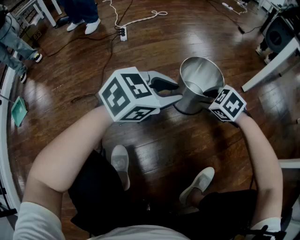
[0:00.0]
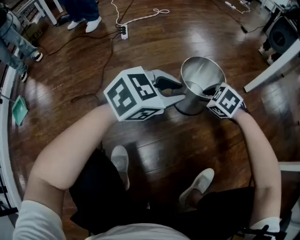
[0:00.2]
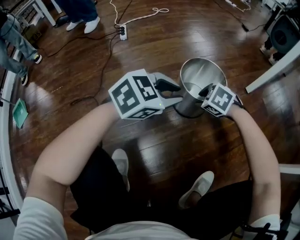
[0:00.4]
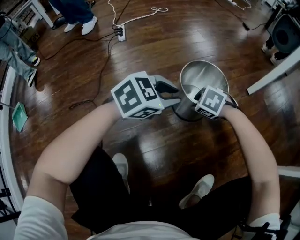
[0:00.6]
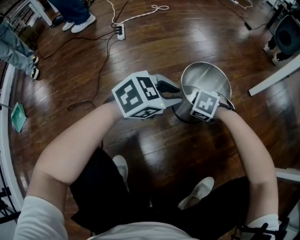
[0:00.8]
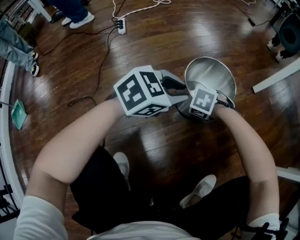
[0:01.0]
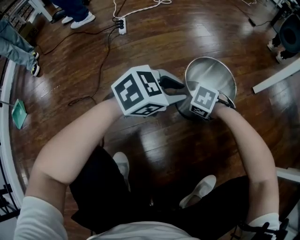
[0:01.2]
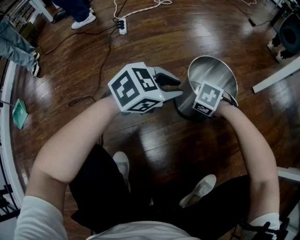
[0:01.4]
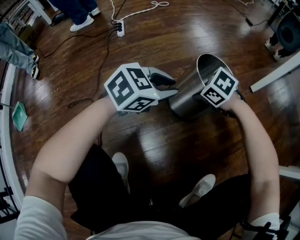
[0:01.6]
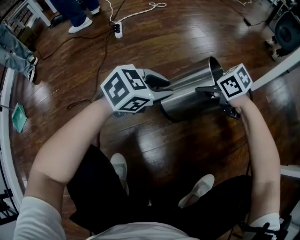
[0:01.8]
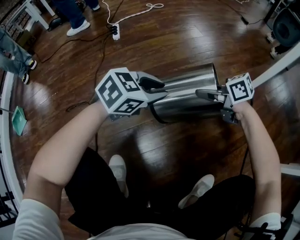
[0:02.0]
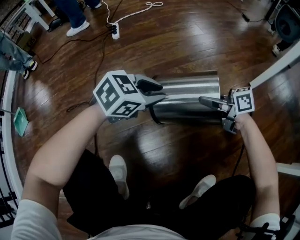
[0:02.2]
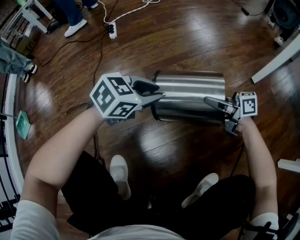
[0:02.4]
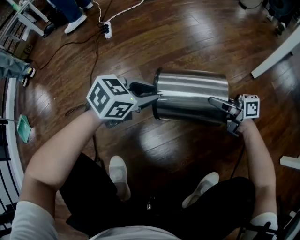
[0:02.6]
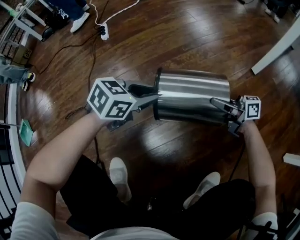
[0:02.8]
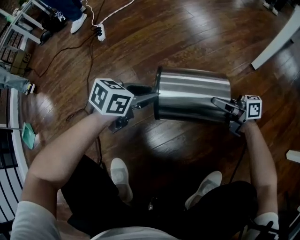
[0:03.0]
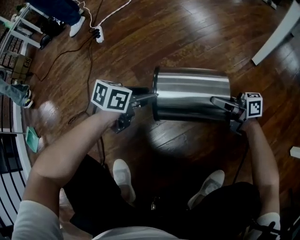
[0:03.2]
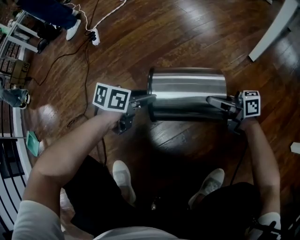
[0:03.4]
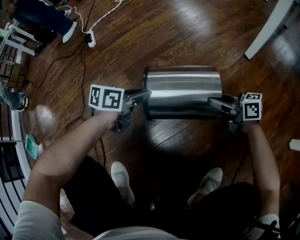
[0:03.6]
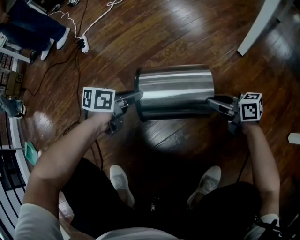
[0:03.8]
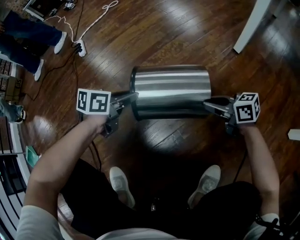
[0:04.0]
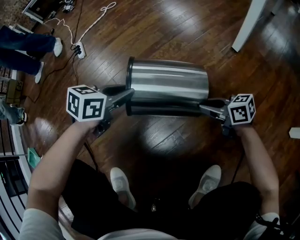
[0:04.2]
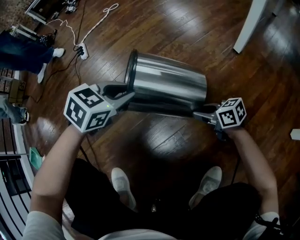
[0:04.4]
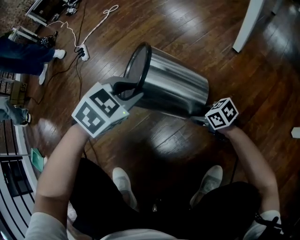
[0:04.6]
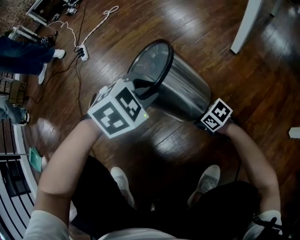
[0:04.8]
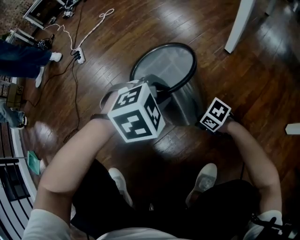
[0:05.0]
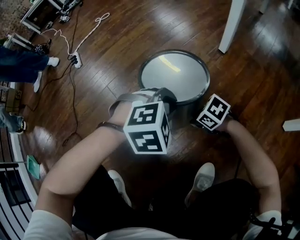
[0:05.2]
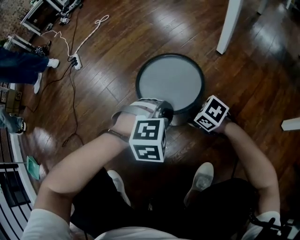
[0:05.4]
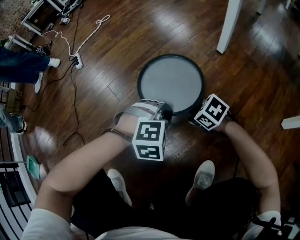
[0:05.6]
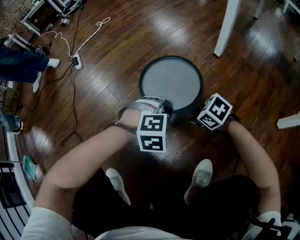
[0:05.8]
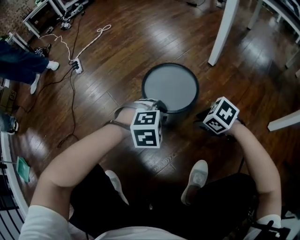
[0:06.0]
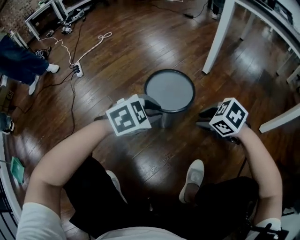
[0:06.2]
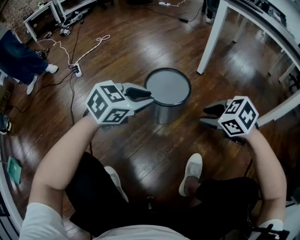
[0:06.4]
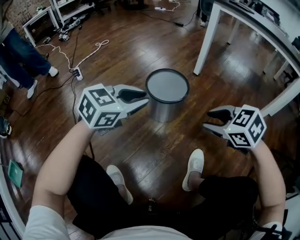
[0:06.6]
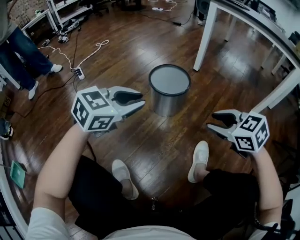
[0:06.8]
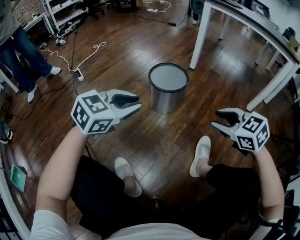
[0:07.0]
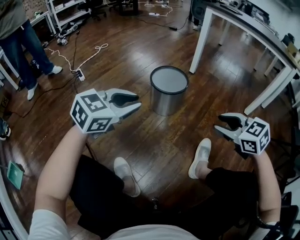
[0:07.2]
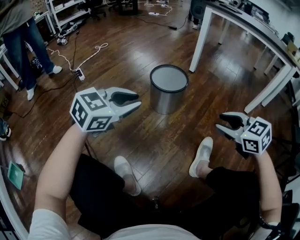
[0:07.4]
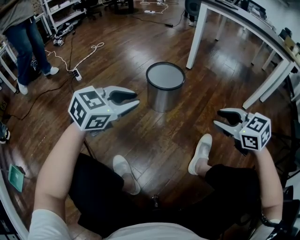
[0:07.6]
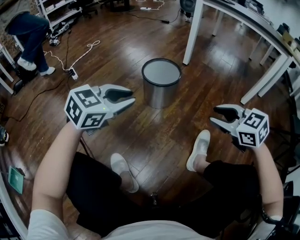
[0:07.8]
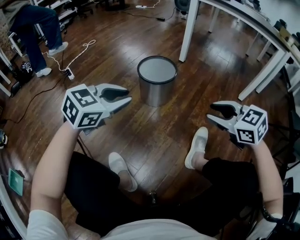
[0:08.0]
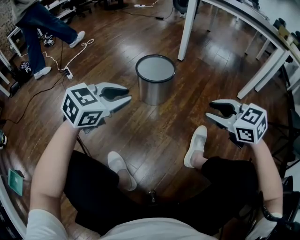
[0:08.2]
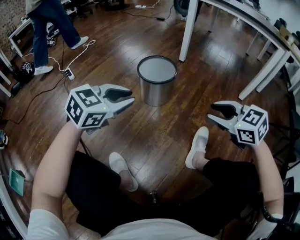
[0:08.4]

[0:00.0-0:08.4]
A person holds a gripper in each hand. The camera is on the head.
0:00.0 to 0:01.4: The left gripper moves approximately 10 cm; the right gripper is displaced downward by about 10 cm, changes its angle by approximately 20 degrees, and closes its fingers.
0:01.4 to 0:02.8: The left gripper is displaced downward by roughly 10 cm. Meanwhile the right gripper changes place by some 15 cm, and tilts its fingers about 80 degrees upward.
0:02.8 to 0:04.2: The right gripper ends up approximately 10 cm from where it was, and swivels some 30 degrees. The left gripper opens, then closes again.
0:04.2 to 0:05.6: The left gripper shifts by approximately 20 cm, and twists about 70 degrees clockwise, seen from behind, while the right gripper travels downward and back again, approximately 10 cm each way, and tilts its fingers approximately 40 degrees downward.
0:05.6 to 0:07.0: Both grippers travel together upward, approximately 25 cm. The right gripper rotates about 40 degrees; the left gripper points its fingers roughly 30 degrees further upward.
0:07.0 to 0:08.4: The grippers stay close to where they were, moving slightly.

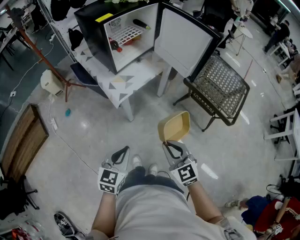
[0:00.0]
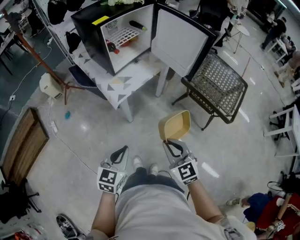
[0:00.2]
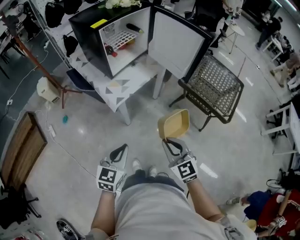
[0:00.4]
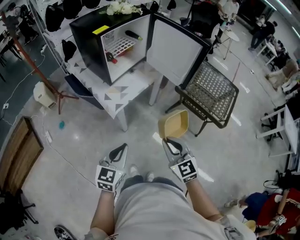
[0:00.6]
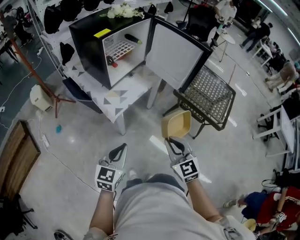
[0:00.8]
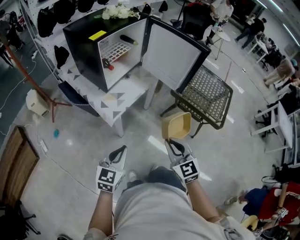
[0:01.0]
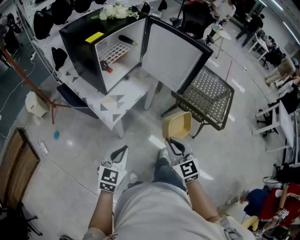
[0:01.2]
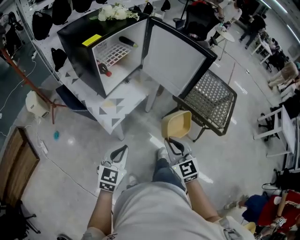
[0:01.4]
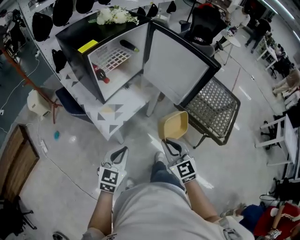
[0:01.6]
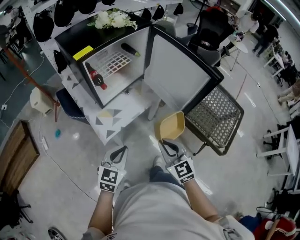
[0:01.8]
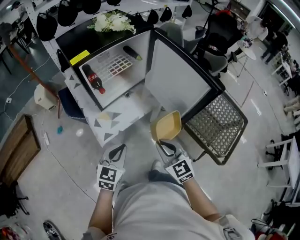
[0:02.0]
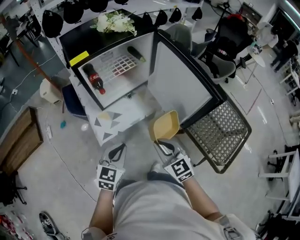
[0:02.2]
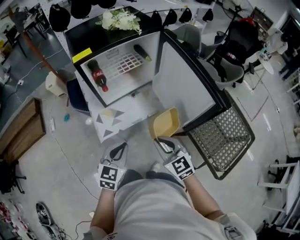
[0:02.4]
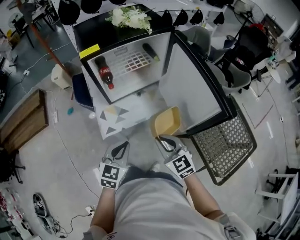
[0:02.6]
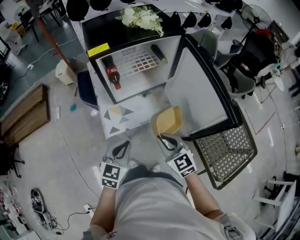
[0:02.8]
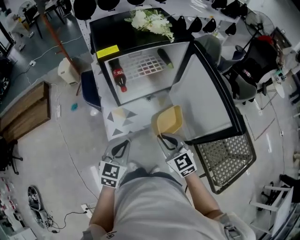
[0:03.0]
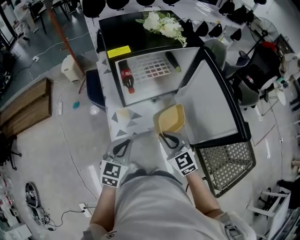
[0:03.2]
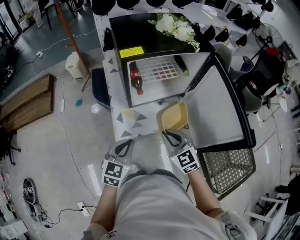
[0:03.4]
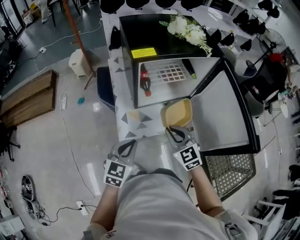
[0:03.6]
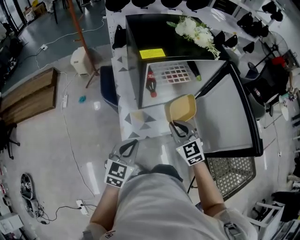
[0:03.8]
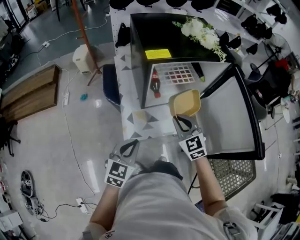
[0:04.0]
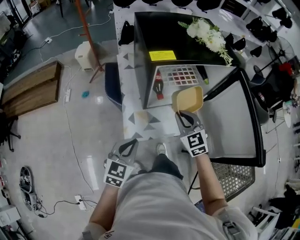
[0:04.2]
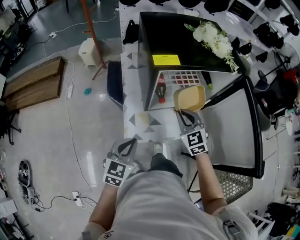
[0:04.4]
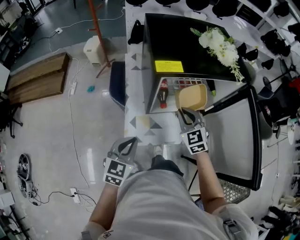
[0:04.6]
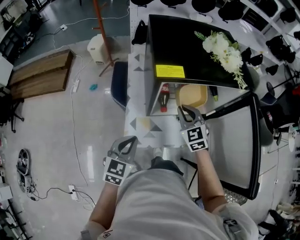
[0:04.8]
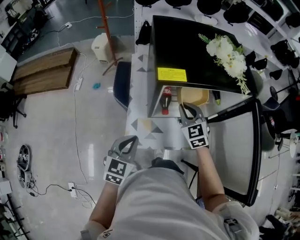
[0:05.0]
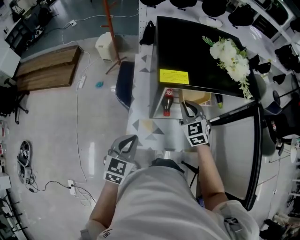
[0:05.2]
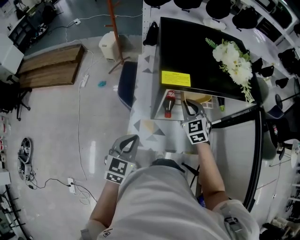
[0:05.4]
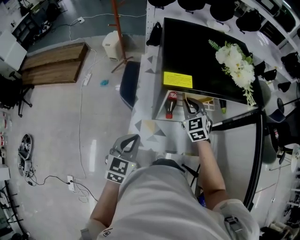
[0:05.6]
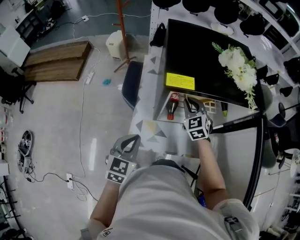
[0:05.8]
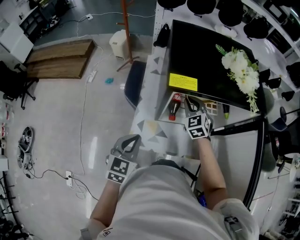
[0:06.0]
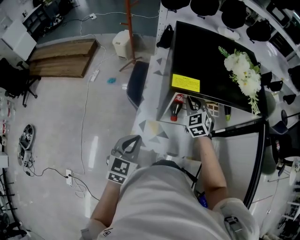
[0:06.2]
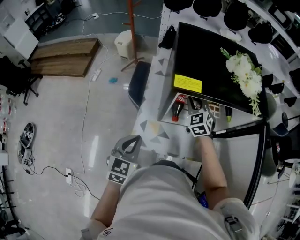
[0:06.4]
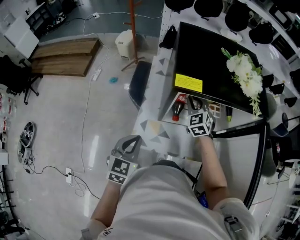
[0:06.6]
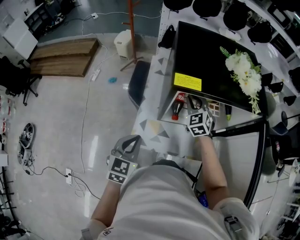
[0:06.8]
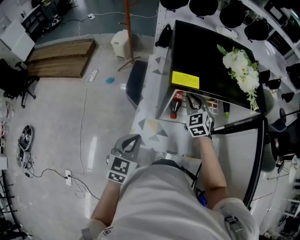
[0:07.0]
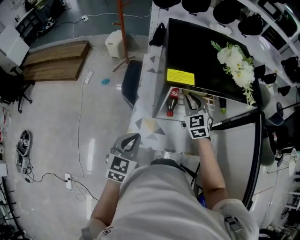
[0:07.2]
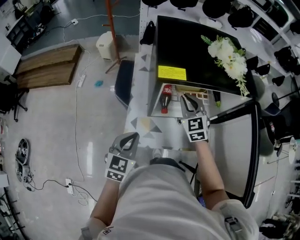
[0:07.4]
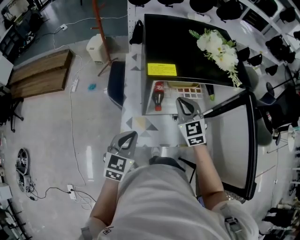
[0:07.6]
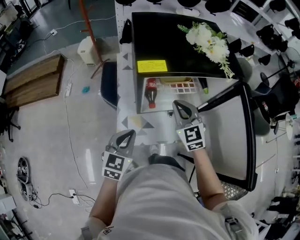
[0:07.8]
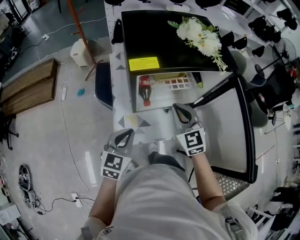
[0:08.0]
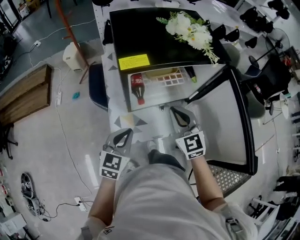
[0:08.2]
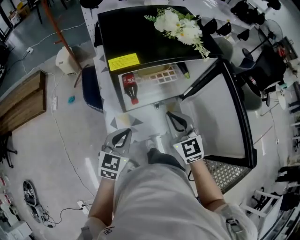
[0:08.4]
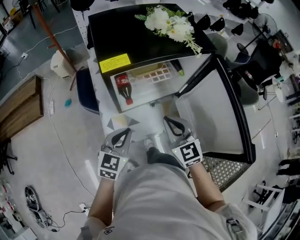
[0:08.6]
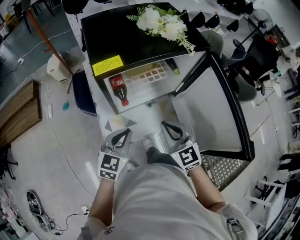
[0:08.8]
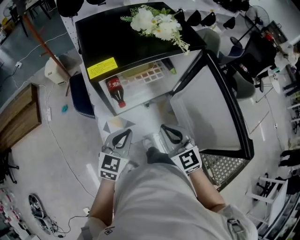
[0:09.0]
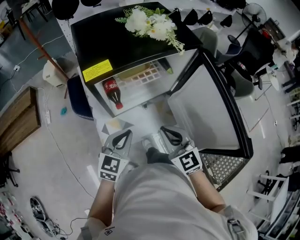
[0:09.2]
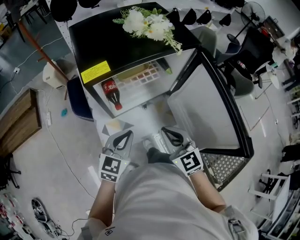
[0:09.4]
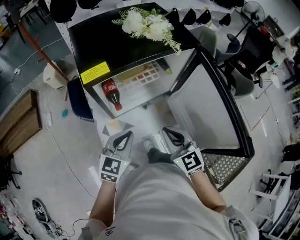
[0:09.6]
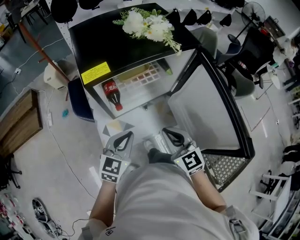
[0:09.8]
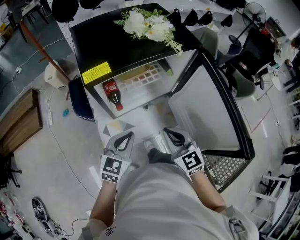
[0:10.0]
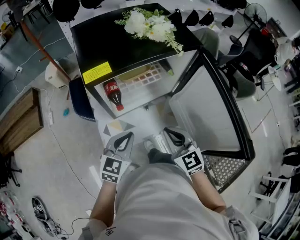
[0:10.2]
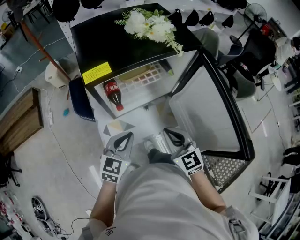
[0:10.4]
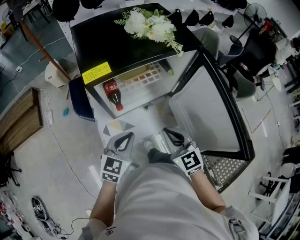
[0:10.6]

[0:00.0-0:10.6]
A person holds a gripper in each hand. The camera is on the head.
0:00.0 to 0:01.6: The two grippers go roughly 20 cm forward.
0:01.6 to 0:03.0: The right gripper moves roughly 15 cm, and rotates about 30 degrees, while the left gripper shifts by roughly 15 cm, and turns by about 30 degrees.
0:03.0 to 0:04.6: The left gripper moves forward and to the left, roughly 15 cm, while the right gripper moves forward, approximately 25 cm.
0:04.6 to 0:06.0: The right gripper shifts some 15 cm forward.
0:06.0 to 0:07.6: The right gripper moves backward and upward, approximately 10 cm.
0:07.6 to 0:09.0: The right gripper shifts some 20 cm backward and to the right, while the left gripper is displaced to the right by about 10 cm, and turns by some 20 degrees.
0:09.0 to 0:10.6: The grippers stay close to where they were, moving slightly.

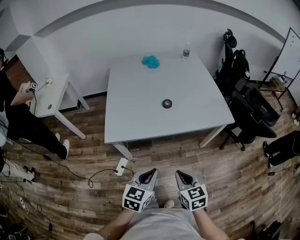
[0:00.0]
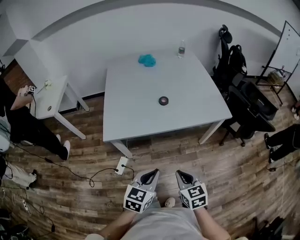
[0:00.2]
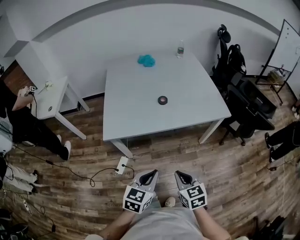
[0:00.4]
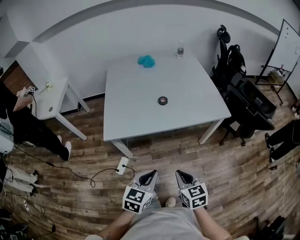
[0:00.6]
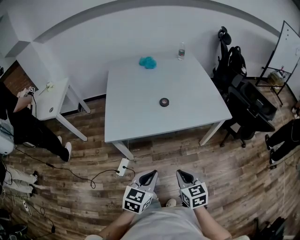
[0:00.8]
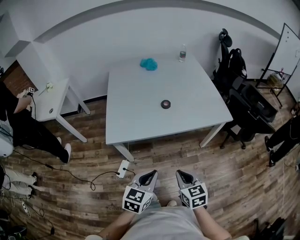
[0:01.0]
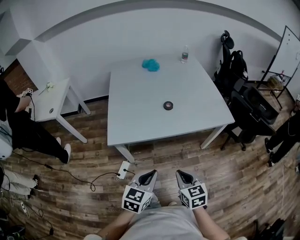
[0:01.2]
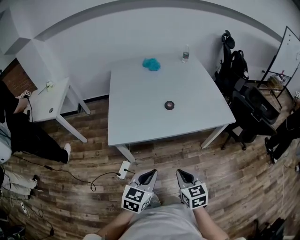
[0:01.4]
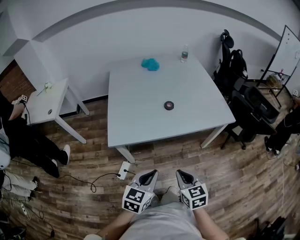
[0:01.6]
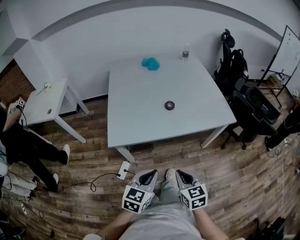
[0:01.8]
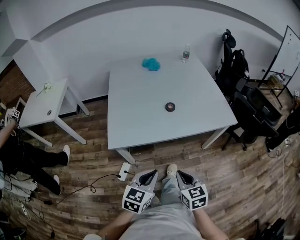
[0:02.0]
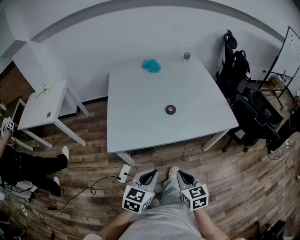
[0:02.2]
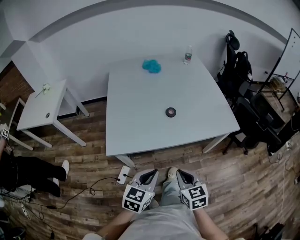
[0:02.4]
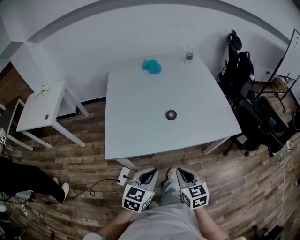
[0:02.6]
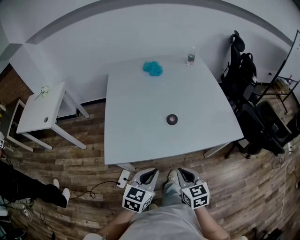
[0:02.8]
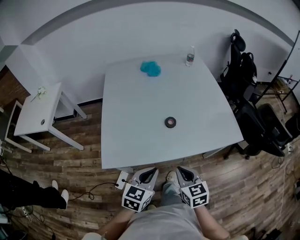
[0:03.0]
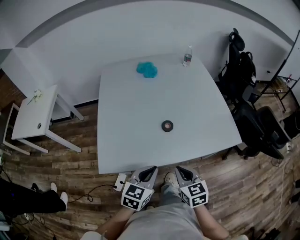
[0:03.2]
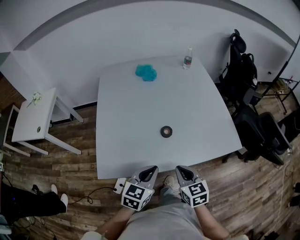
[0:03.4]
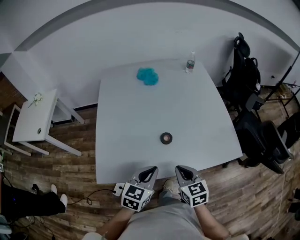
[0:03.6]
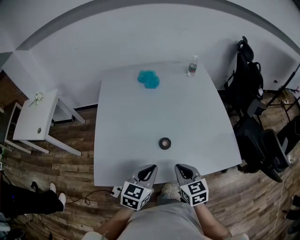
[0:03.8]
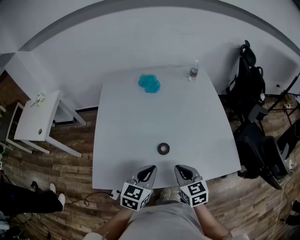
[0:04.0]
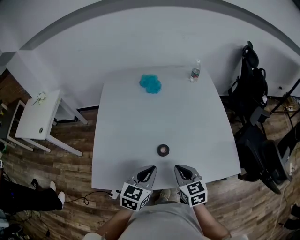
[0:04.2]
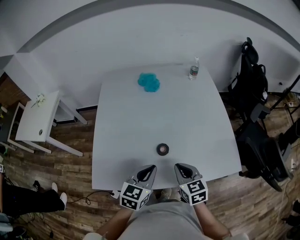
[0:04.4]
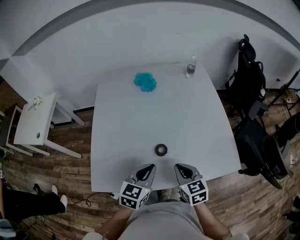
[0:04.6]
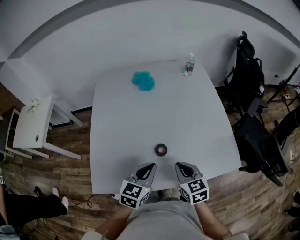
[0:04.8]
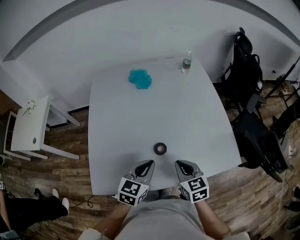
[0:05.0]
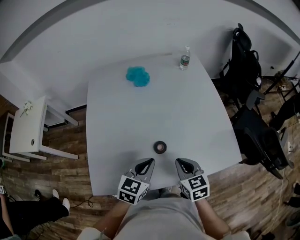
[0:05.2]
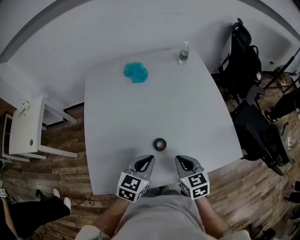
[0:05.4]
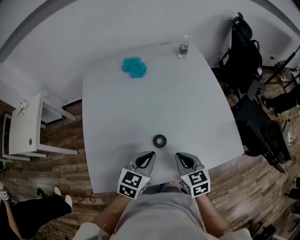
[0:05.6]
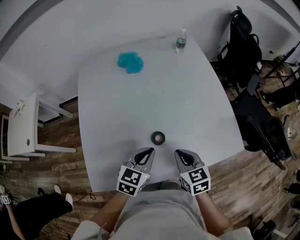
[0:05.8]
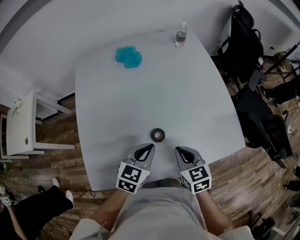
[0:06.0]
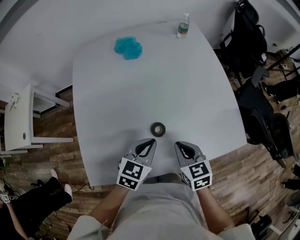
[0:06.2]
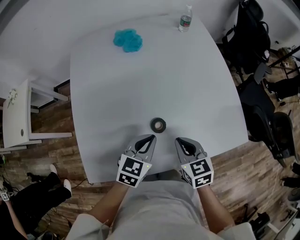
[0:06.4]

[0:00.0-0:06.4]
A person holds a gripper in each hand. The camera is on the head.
0:00.0 to 0:01.6: The grippers stay close to where they were, moving slightly.
0:01.6 to 0:03.2: Both grippers travel together forward, some 20 cm.
0:03.2 to 0:04.8: Both grippers travel together forward, roughly 15 cm.
0:04.8 to 0:06.4: The right gripper moves downward, about 5 cm. Meanwhile the left gripper shifts about 10 cm downward and forward.
